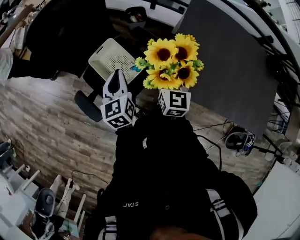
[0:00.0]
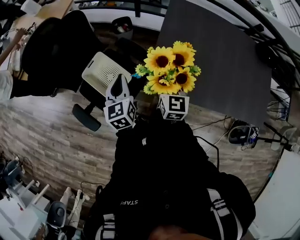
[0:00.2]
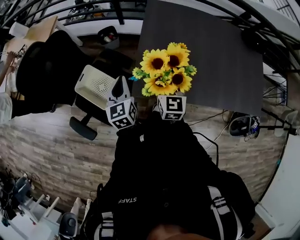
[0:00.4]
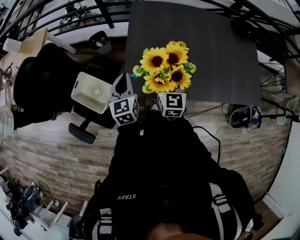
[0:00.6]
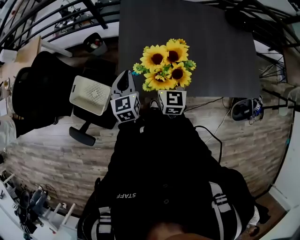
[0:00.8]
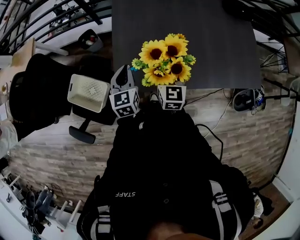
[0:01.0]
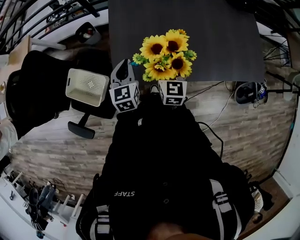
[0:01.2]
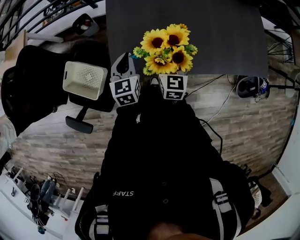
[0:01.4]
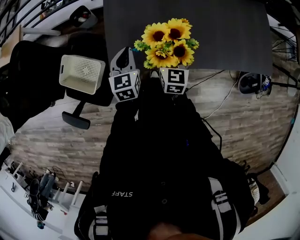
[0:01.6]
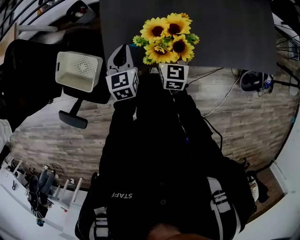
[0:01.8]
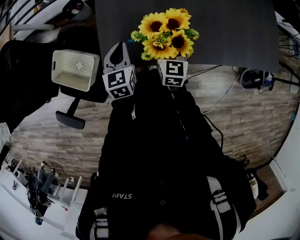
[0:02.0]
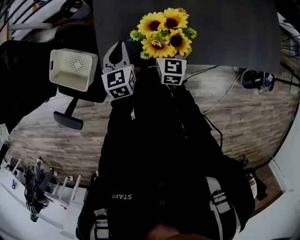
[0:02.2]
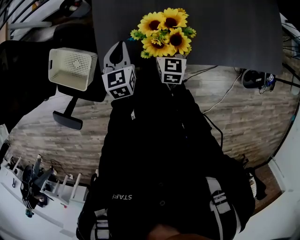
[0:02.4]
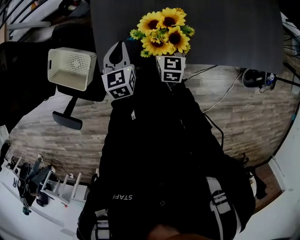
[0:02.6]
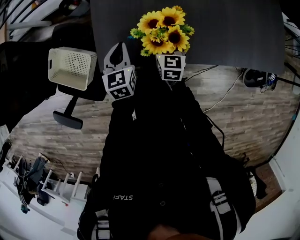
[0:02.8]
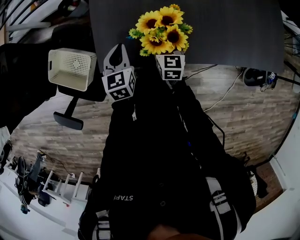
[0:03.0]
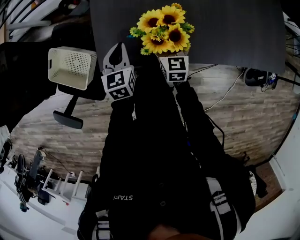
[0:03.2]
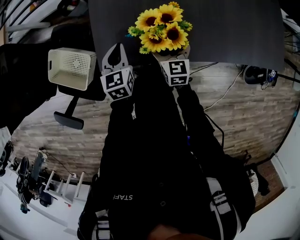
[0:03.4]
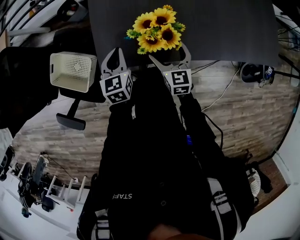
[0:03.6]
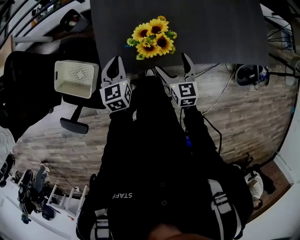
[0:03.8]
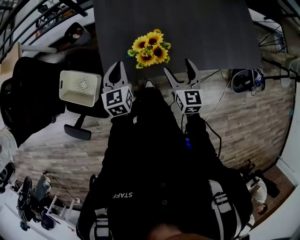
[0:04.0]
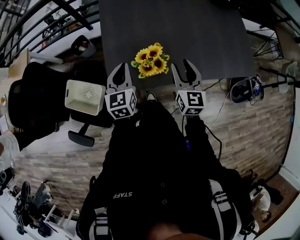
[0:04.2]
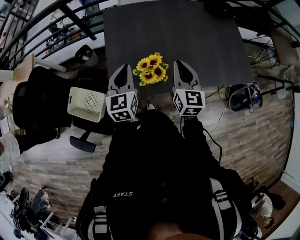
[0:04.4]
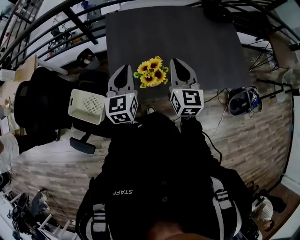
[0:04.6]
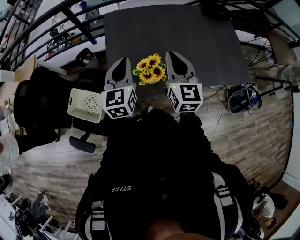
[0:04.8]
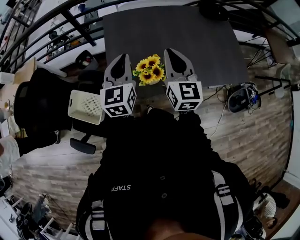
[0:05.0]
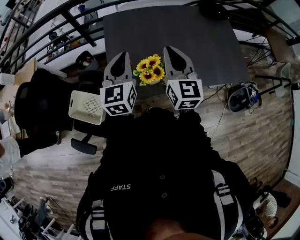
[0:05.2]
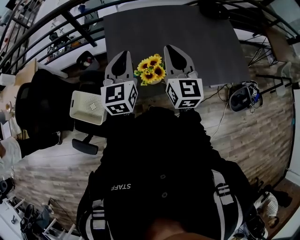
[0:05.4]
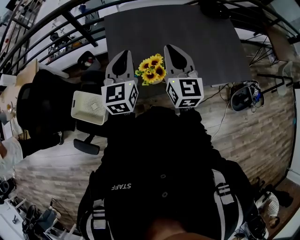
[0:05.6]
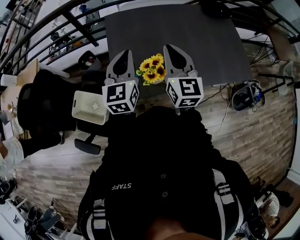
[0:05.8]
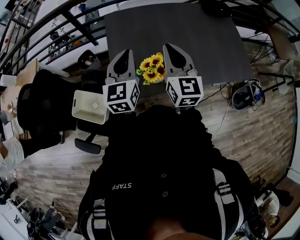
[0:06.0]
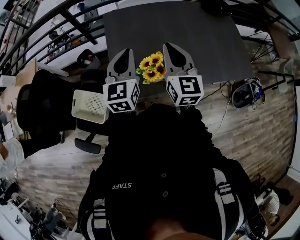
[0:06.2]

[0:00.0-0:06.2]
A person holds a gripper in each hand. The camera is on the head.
0:00.0 to 0:01.6: The right gripper shifts by about 35 cm, and swivels about 30 degrees. Meanwhile the left gripper shifts by roughly 35 cm, and changes its angle by roughly 40 degrees.
0:01.6 to 0:03.2: The grippers both shift downward by approximately 10 cm.
0:03.2 to 0:04.6: The two grippers go about 40 cm upward. The left gripper turns by approximately 20 degrees. Meanwhile the right gripper rotates about 20 degrees, and closes.
0:04.6 to 0:06.2: The right gripper ends up approximately 5 cm from where it was. Meanwhile the left gripper shifts by about 5 cm.

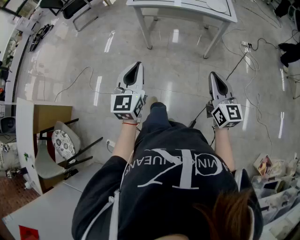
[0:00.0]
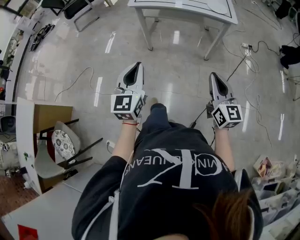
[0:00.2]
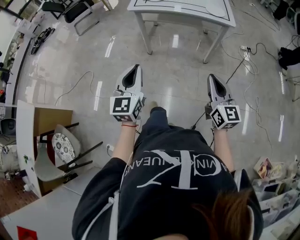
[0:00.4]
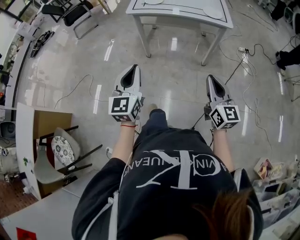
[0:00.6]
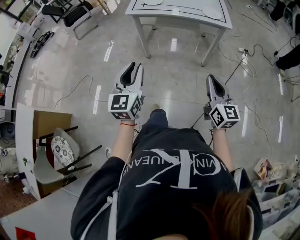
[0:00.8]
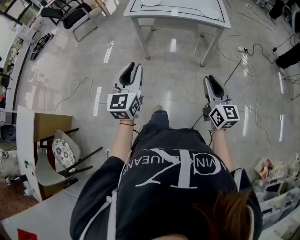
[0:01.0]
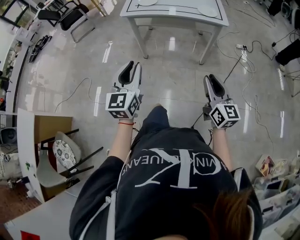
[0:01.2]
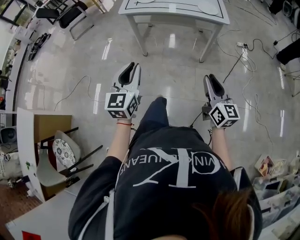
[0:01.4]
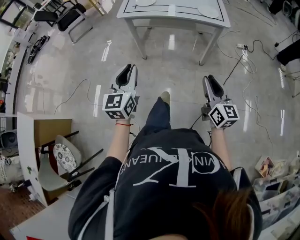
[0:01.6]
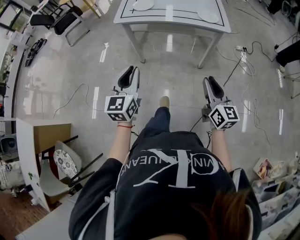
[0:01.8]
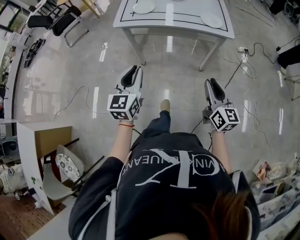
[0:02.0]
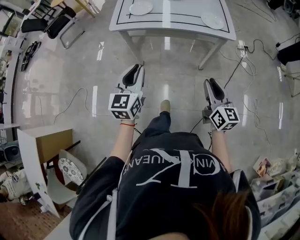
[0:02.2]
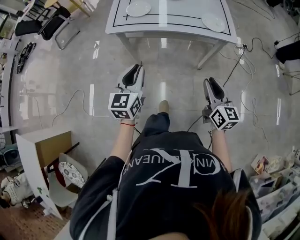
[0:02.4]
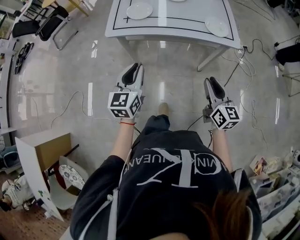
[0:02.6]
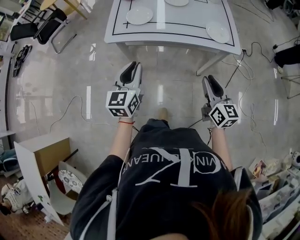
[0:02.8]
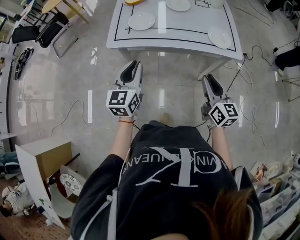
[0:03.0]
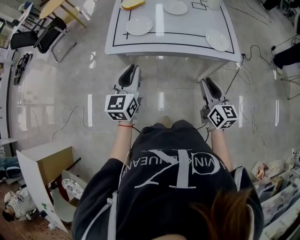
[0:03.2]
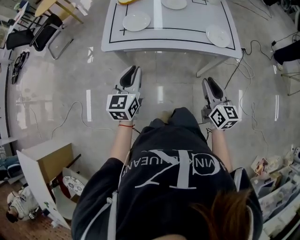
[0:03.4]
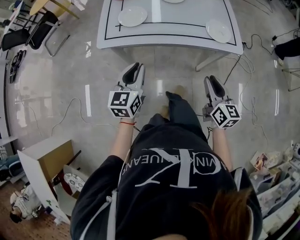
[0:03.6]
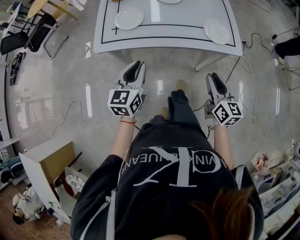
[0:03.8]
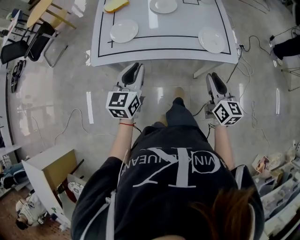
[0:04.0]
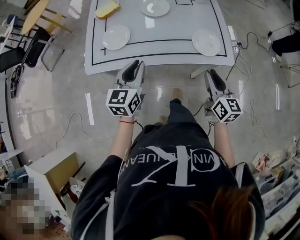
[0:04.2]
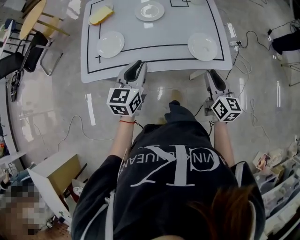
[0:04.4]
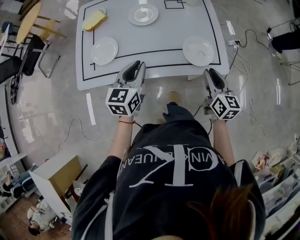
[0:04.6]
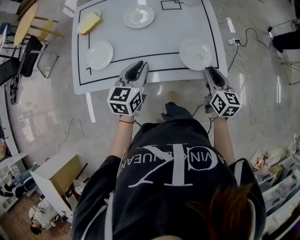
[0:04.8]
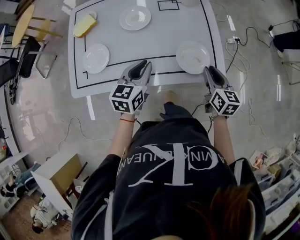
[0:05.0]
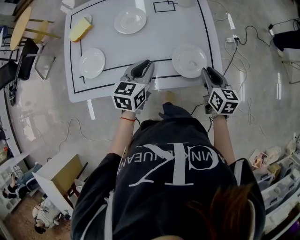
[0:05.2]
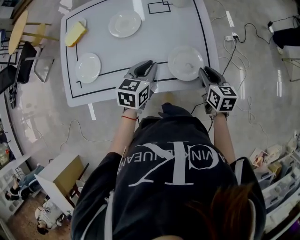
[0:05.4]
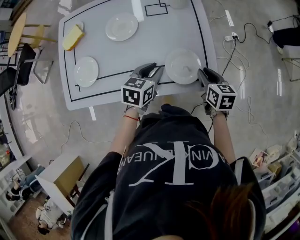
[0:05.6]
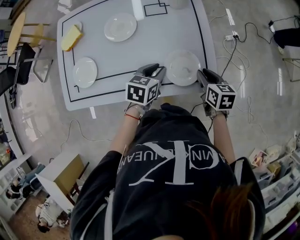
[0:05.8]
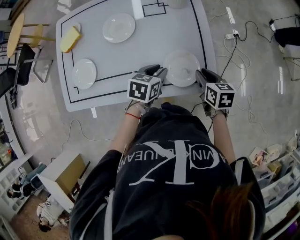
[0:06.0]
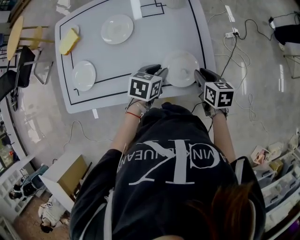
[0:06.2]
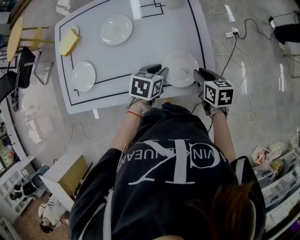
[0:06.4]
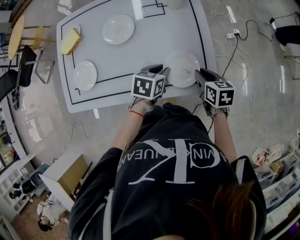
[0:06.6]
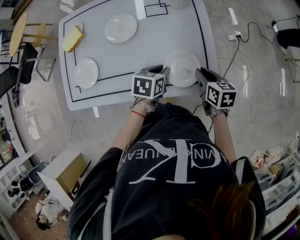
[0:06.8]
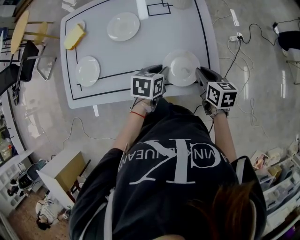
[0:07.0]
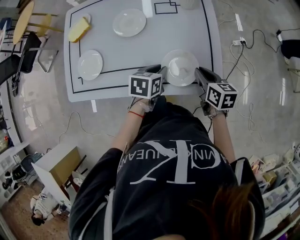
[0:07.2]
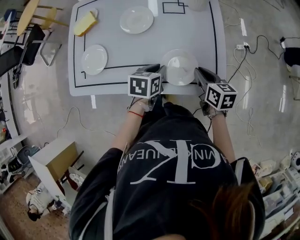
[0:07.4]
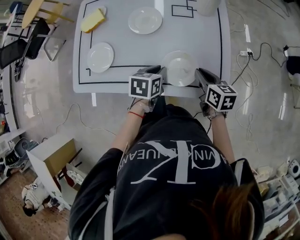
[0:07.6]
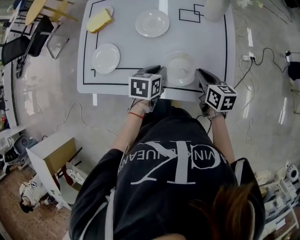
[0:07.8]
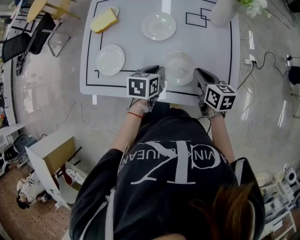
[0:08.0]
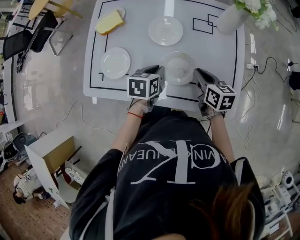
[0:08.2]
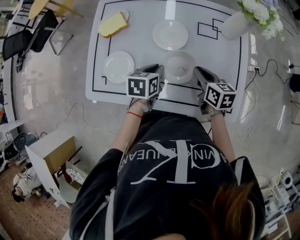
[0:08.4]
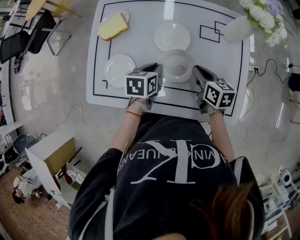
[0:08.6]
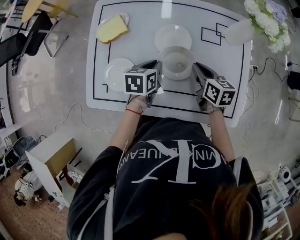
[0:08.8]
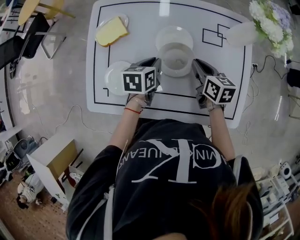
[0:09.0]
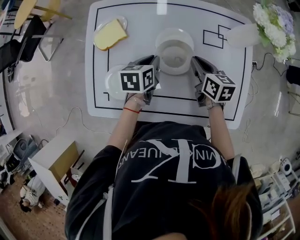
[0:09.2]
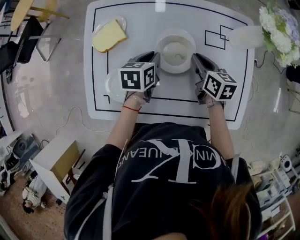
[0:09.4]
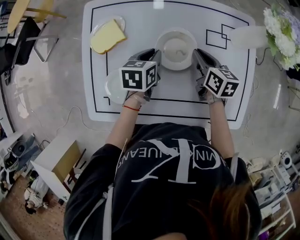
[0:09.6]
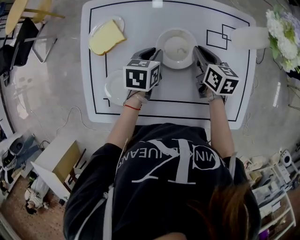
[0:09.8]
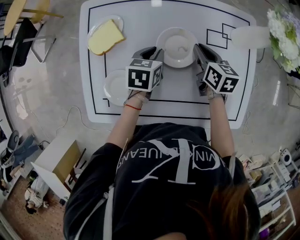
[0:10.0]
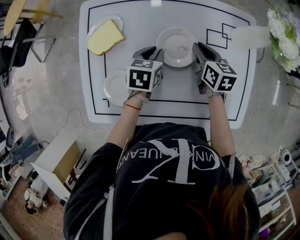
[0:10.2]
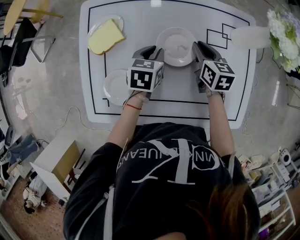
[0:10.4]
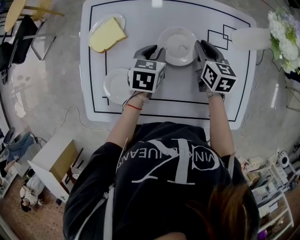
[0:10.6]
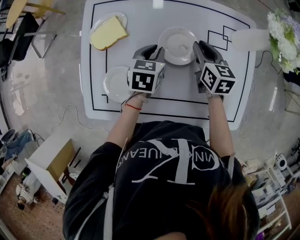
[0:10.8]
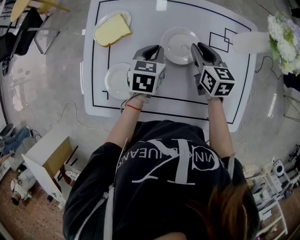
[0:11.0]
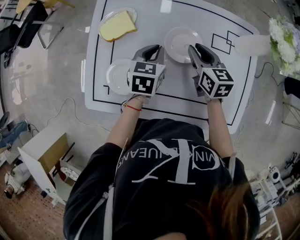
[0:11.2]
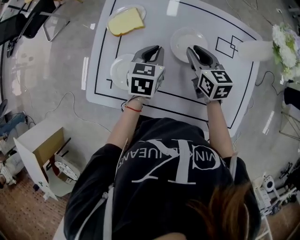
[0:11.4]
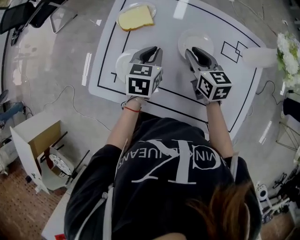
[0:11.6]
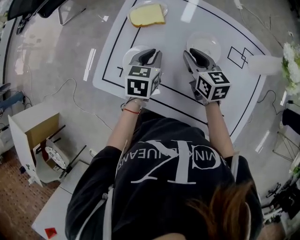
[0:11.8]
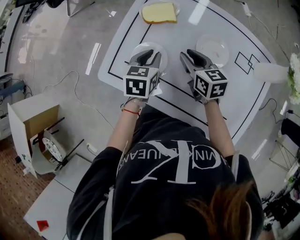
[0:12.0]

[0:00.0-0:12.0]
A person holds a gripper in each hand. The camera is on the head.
0:00.0 to 0:01.6: Both grippers travel together forward, some 5 cm. The right gripper opens up.
0:01.6 to 0:03.0: The two grippers go about 30 cm forward.
0:03.0 to 0:04.4: The grippers both shift forward and to the right by about 20 cm.
0:04.4 to 0:06.0: The right gripper shifts roughly 20 cm forward, downward and to the right, and tilts its fingers about 30 degrees downward. Meanwhile the left gripper moves to the right, forward and downward, roughly 25 cm, and swivels approximately 40 degrees.
0:06.0 to 0:07.6: The grippers both shift to the left by roughly 10 cm.
0:07.6 to 0:09.0: The two grippers go roughly 20 cm forward and to the left.
0:09.0 to 0:10.4: The grippers both shift forward by roughly 10 cm.
0:10.4 to 0:12.0: The right gripper shifts by some 20 cm, and rotates approximately 40 degrees. Meanwhile the left gripper changes place by approximately 20 cm, and turns by approximately 30 degrees.

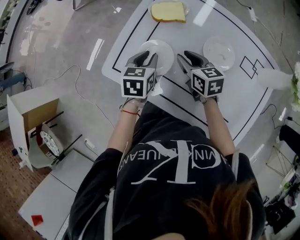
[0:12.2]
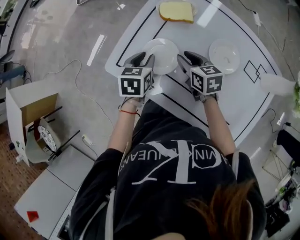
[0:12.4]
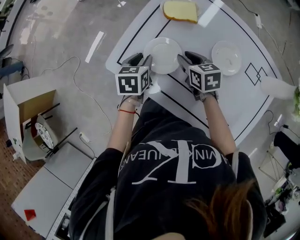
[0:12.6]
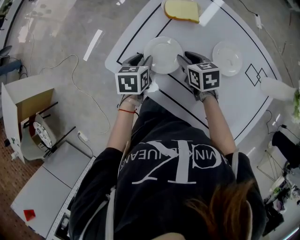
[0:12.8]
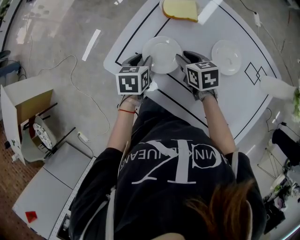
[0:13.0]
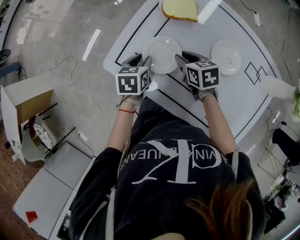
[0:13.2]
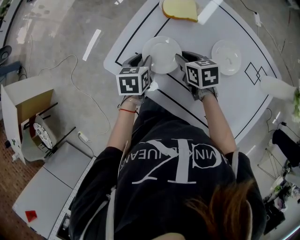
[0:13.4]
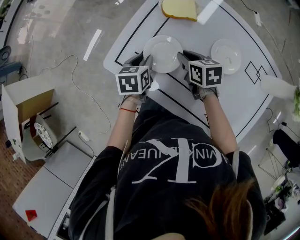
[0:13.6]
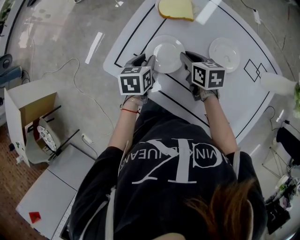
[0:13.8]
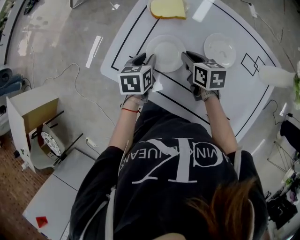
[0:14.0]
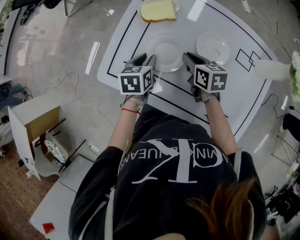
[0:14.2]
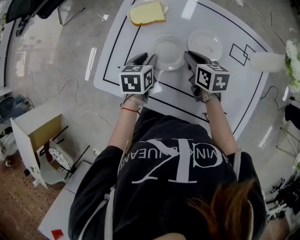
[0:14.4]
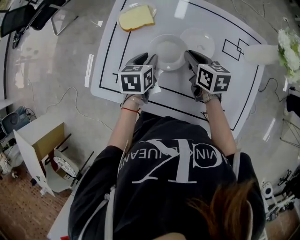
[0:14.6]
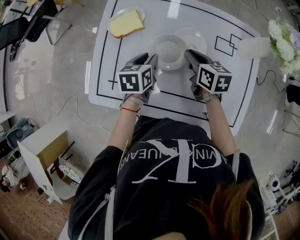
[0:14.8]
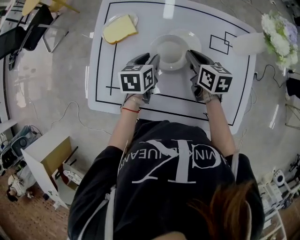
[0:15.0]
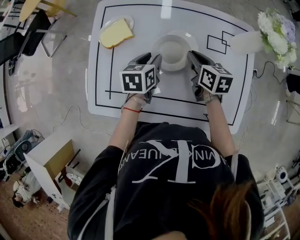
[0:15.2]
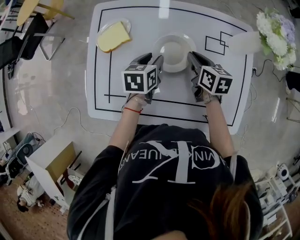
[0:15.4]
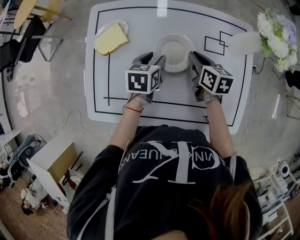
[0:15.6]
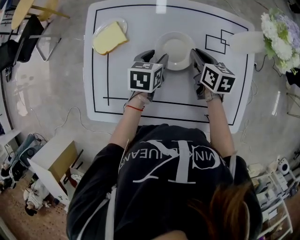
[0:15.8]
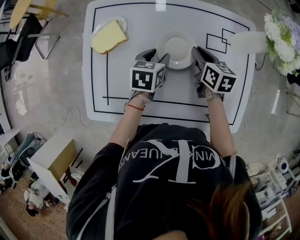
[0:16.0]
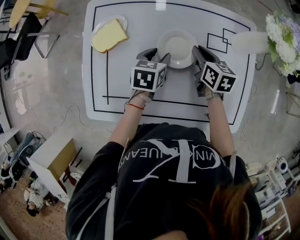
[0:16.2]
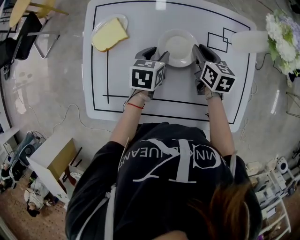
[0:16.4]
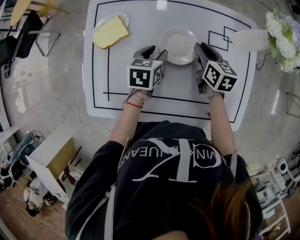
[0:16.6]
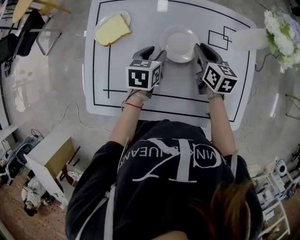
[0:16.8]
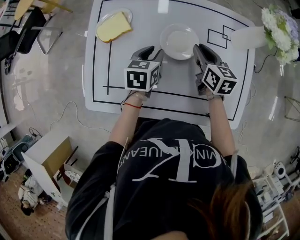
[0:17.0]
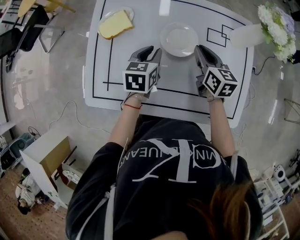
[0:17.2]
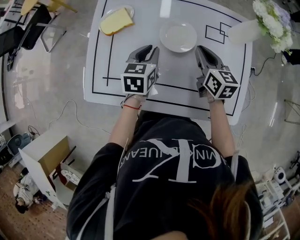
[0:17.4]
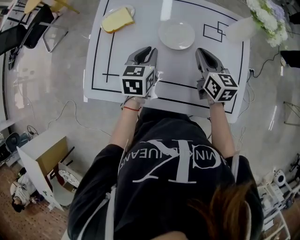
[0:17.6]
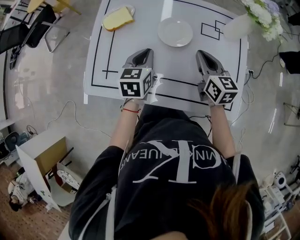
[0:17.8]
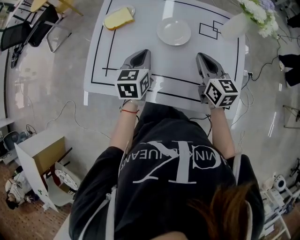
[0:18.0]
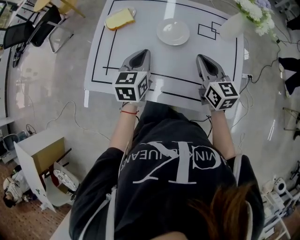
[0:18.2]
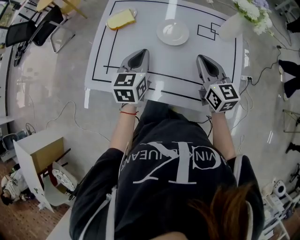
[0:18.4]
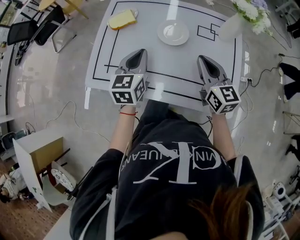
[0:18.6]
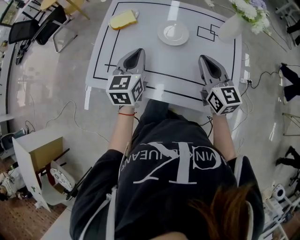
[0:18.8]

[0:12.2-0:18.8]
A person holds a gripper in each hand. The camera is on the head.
0:12.2 to 0:13.8: The left gripper ends up about 5 cm from where it was.
0:13.8 to 0:15.4: The right gripper shifts by approximately 25 cm, and swivels some 40 degrees. Meanwhile the left gripper ends up roughly 25 cm from where it was, and turns by about 30 degrees.
0:15.4 to 0:17.2: The grippers move only a little.
0:17.2 to 0:18.8: Both grippers move backward and upward, roughly 20 cm. The left gripper rotates roughly 30 degrees, and closes up; the right gripper changes its angle by approximately 30 degrees.
